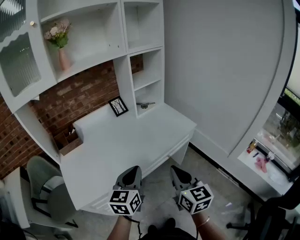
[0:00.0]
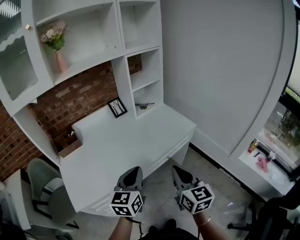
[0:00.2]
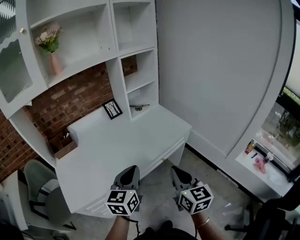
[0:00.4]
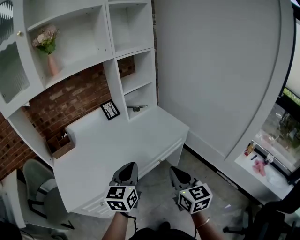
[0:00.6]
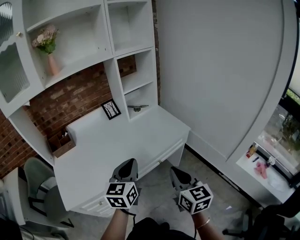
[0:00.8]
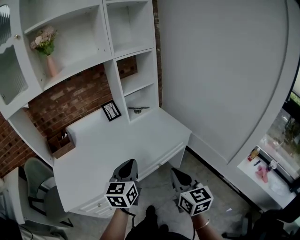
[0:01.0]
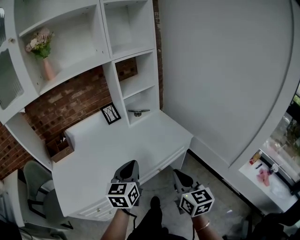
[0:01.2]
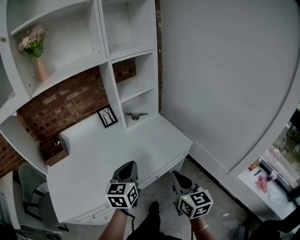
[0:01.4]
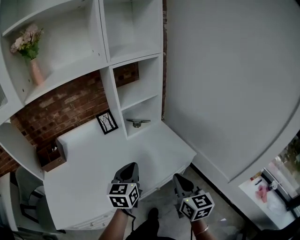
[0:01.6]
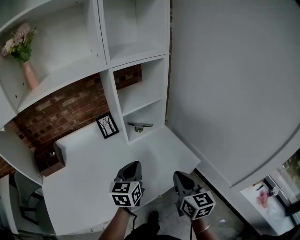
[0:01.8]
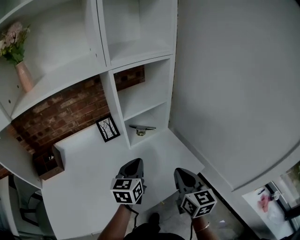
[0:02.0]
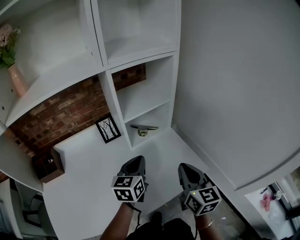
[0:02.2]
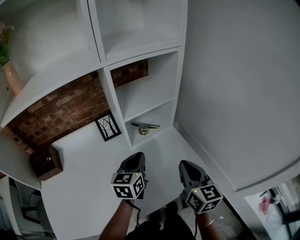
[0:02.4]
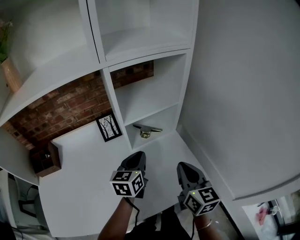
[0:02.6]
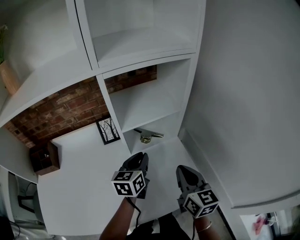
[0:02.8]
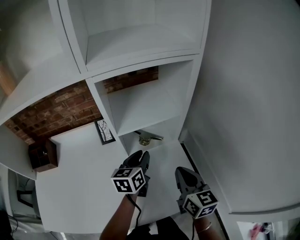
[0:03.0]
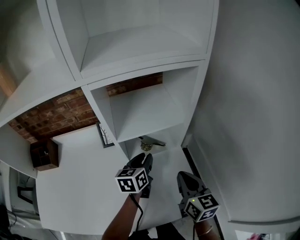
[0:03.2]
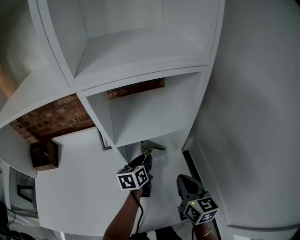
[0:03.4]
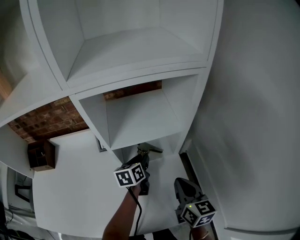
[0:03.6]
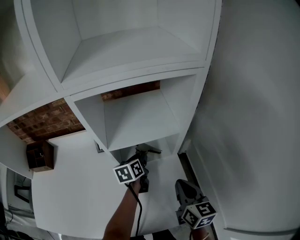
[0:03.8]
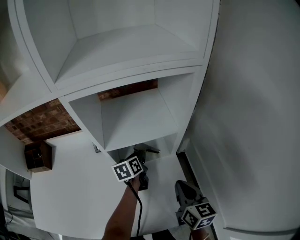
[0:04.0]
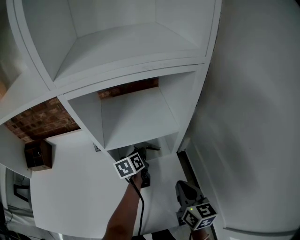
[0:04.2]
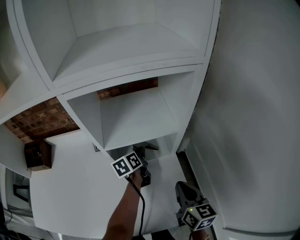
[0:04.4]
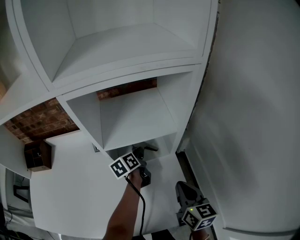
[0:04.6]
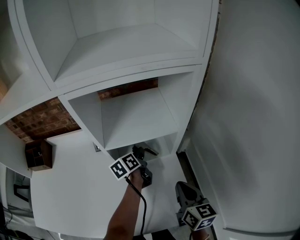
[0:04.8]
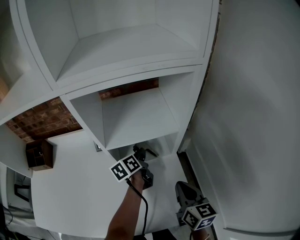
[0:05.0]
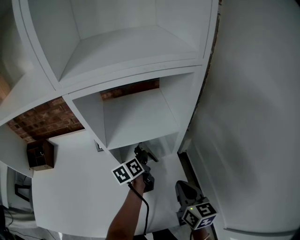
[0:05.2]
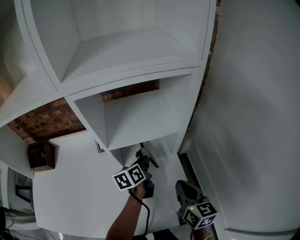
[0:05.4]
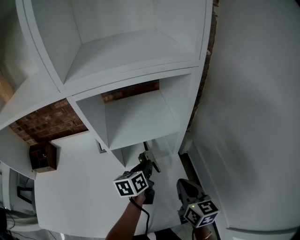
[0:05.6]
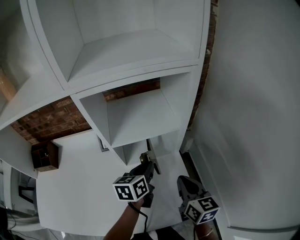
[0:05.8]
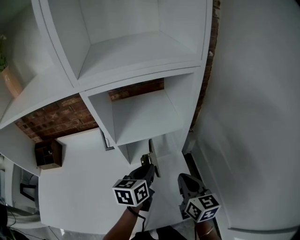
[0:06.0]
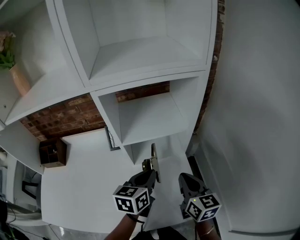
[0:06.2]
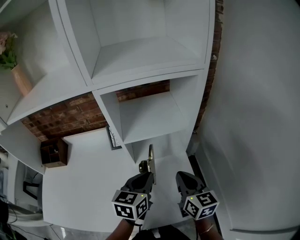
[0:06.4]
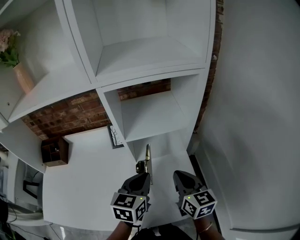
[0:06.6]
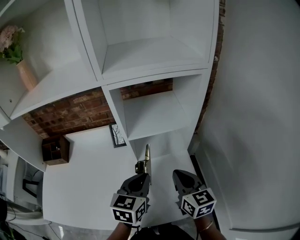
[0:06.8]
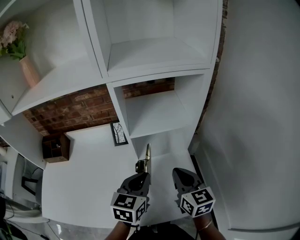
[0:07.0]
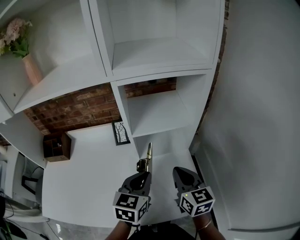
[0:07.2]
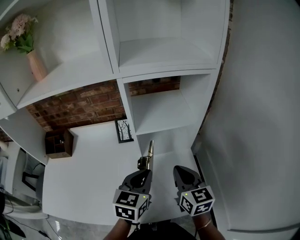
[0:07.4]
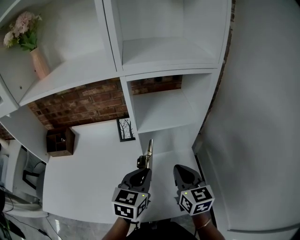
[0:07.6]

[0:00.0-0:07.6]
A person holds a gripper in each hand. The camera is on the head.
0:00.0 to 0:01.6: The right gripper heads forward and to the right, covering about 25 cm. The left gripper travels forward by roughly 25 cm.
0:01.6 to 0:03.0: Both grippers travel together forward, approximately 30 cm.
0:03.0 to 0:04.6: The left gripper goes some 15 cm forward and downward, and changes its angle by about 30 degrees. Meanwhile the right gripper moves approximately 5 cm.
0:04.6 to 0:06.0: The left gripper travels backward and upward by roughly 15 cm, and swivels roughly 30 degrees.
0:06.0 to 0:07.6: The right gripper travels to the left by about 10 cm. Meanwhile the left gripper moves backward, to the left and upward, roughly 15 cm, and rotates about 20 degrees.

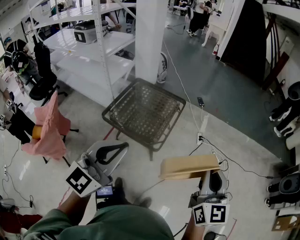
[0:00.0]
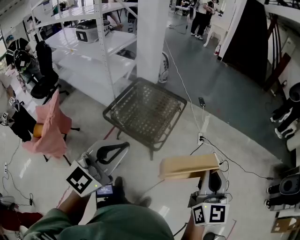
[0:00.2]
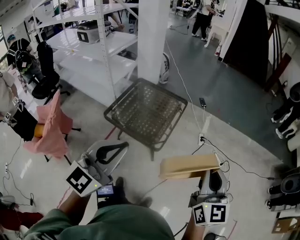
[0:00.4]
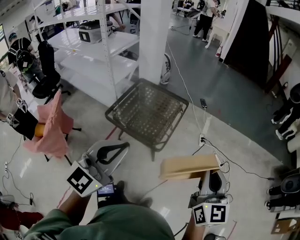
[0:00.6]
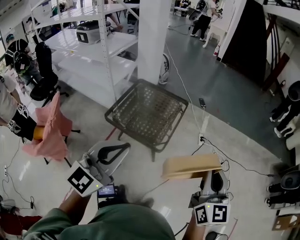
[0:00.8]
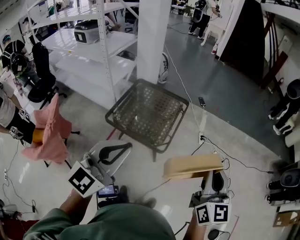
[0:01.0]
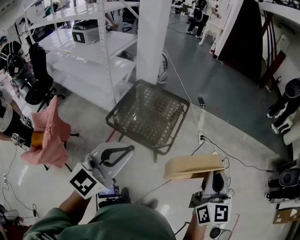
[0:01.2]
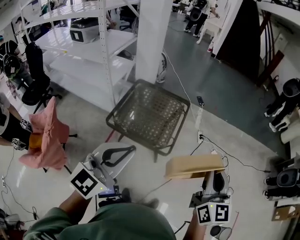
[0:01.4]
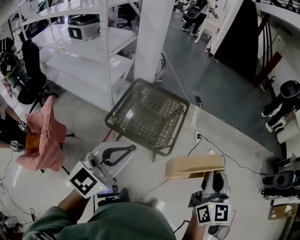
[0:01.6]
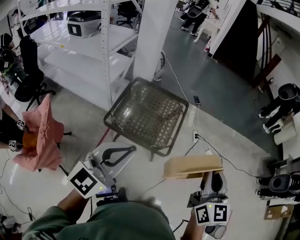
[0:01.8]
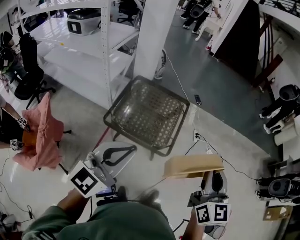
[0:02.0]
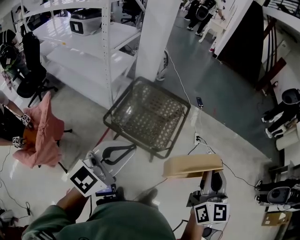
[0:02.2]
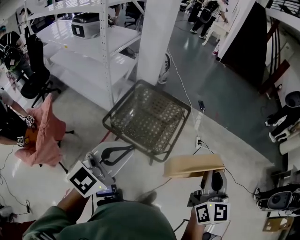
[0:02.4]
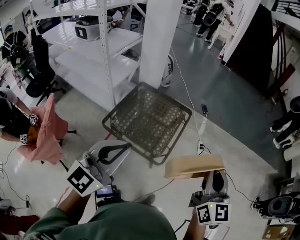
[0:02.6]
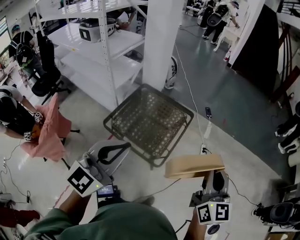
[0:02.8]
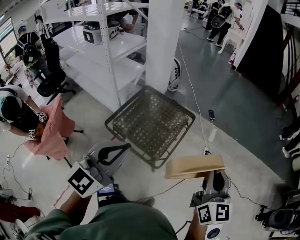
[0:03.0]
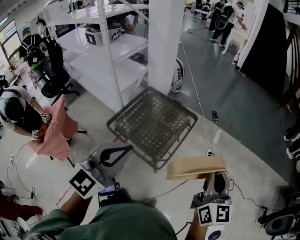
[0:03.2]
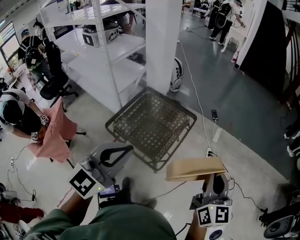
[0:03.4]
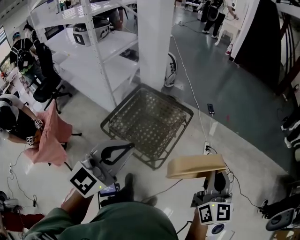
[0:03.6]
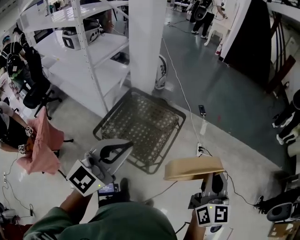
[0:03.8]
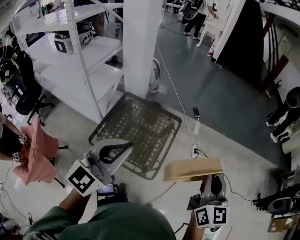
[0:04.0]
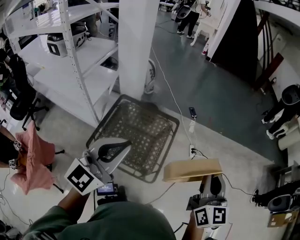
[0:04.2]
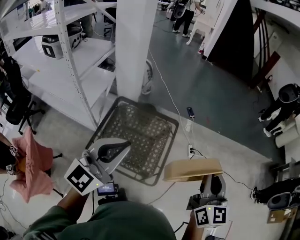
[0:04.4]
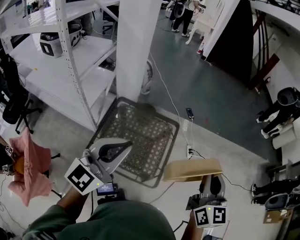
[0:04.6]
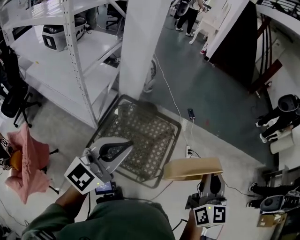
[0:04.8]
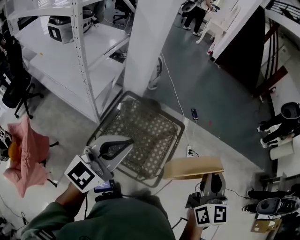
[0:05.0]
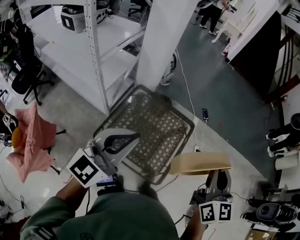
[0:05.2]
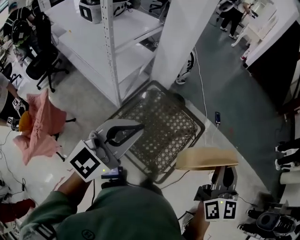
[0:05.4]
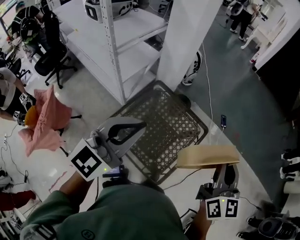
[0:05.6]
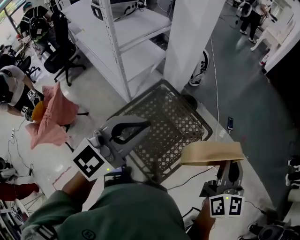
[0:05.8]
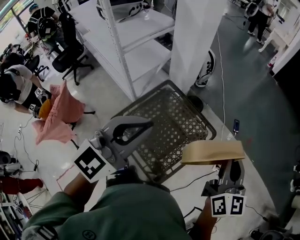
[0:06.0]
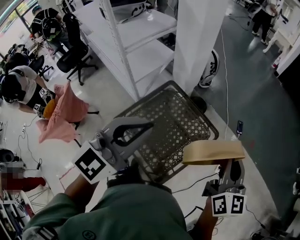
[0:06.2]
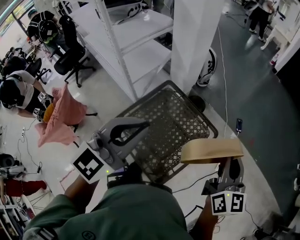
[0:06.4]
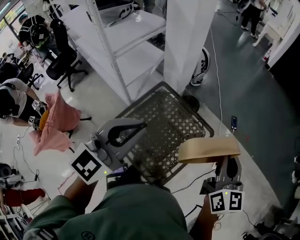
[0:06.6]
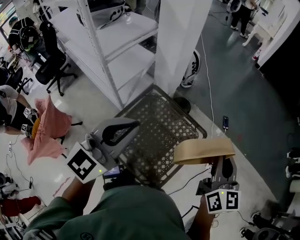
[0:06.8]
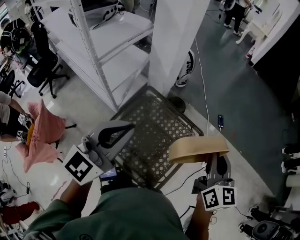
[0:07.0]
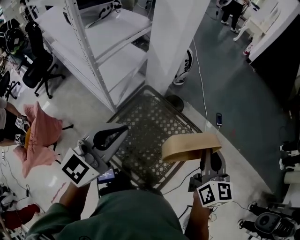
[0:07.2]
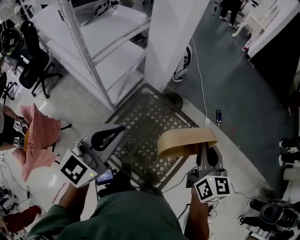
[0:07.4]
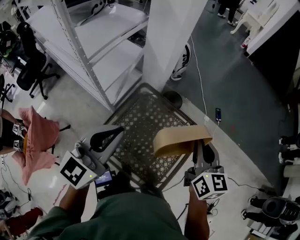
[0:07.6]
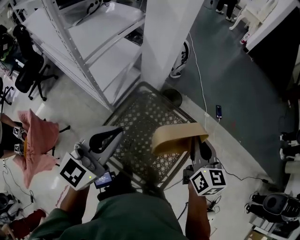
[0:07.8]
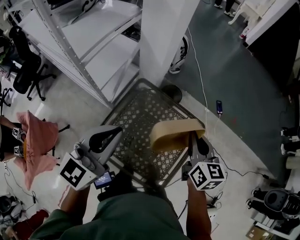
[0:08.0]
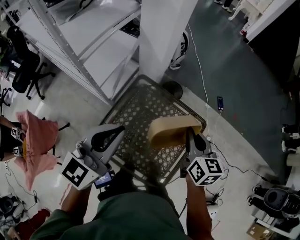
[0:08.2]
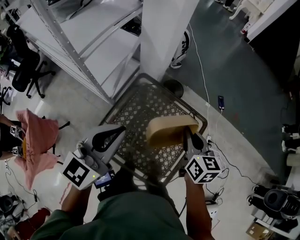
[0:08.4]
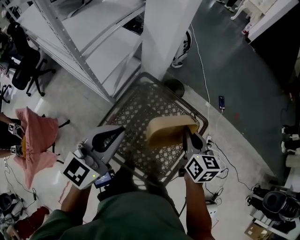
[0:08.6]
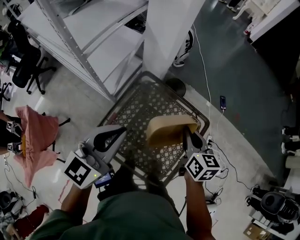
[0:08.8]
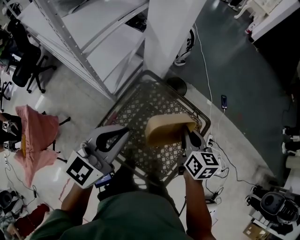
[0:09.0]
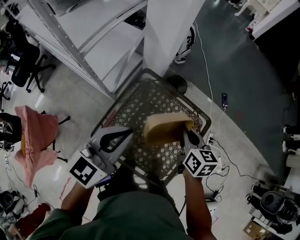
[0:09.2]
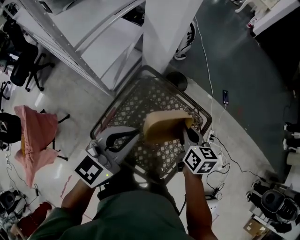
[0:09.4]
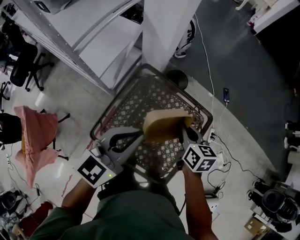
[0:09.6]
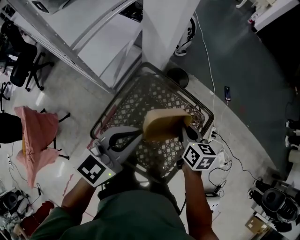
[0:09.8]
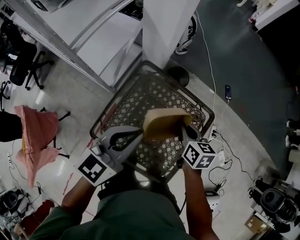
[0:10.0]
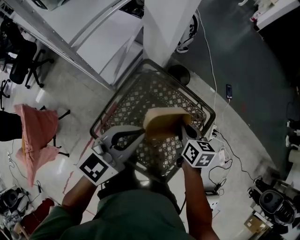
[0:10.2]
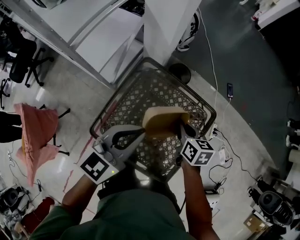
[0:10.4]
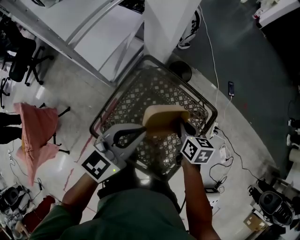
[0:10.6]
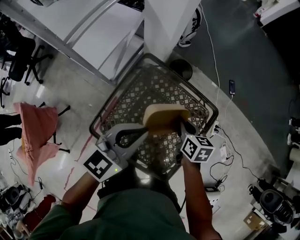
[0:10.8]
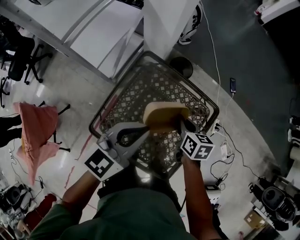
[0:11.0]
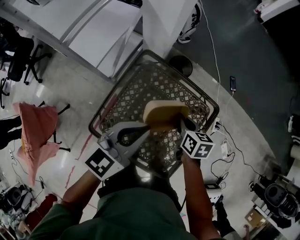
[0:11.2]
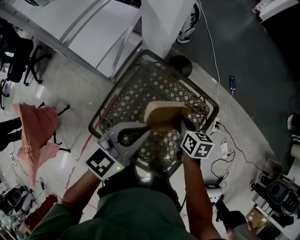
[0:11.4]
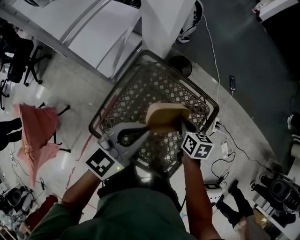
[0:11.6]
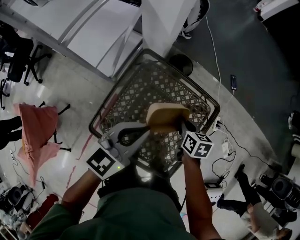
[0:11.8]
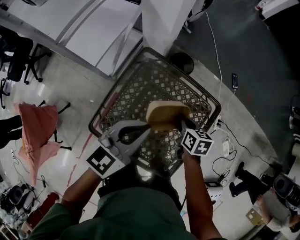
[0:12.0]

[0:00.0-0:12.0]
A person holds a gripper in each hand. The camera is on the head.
0:00.0 to 0:01.6: The two grippers go about 20 cm to the left.
0:01.6 to 0:03.0: The left gripper travels to the right and forward by some 20 cm. The right gripper travels forward and to the right by some 25 cm.
0:03.0 to 0:04.4: The left gripper heads forward and to the left, covering some 25 cm, while the right gripper moves to the left and forward, approximately 15 cm.
0:04.4 to 0:06.0: The right gripper moves forward, some 25 cm, and turns by about 30 degrees. The left gripper travels forward by approximately 15 cm, and changes its angle by roughly 20 degrees.
0:06.0 to 0:07.6: The grippers both shift to the left, forward and downward by roughly 20 cm.
0:07.6 to 0:09.0: The right gripper is displaced downward and to the left by some 15 cm. Meanwhile the left gripper goes some 10 cm downward.
0:09.0 to 0:10.4: The two grippers go about 10 cm downward.
0:10.4 to 0:12.0: The right gripper is displaced downward by approximately 10 cm. The left gripper travels downward by about 5 cm.

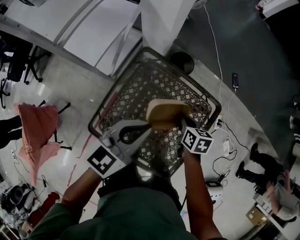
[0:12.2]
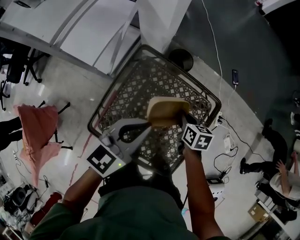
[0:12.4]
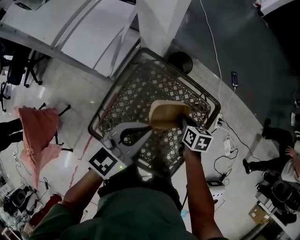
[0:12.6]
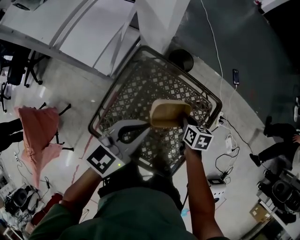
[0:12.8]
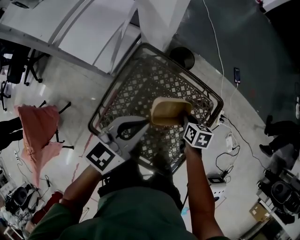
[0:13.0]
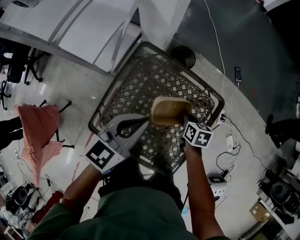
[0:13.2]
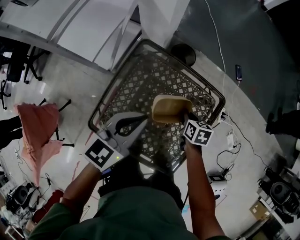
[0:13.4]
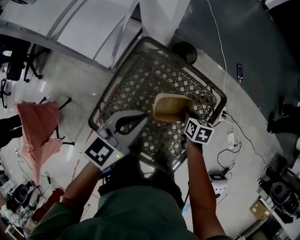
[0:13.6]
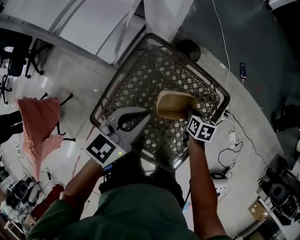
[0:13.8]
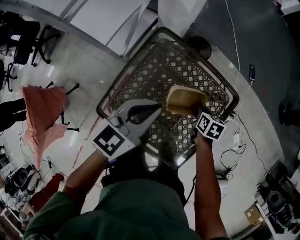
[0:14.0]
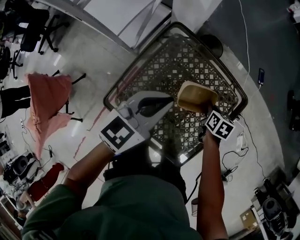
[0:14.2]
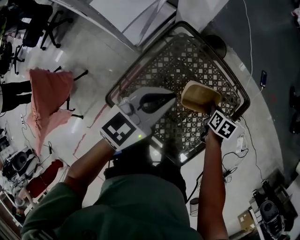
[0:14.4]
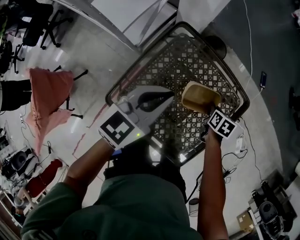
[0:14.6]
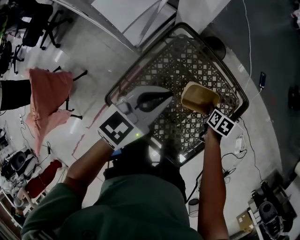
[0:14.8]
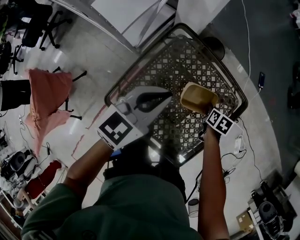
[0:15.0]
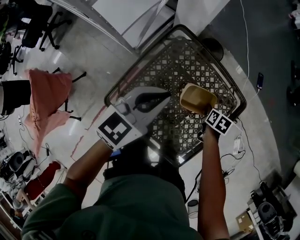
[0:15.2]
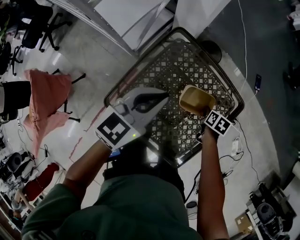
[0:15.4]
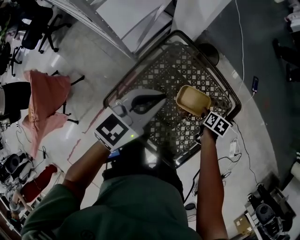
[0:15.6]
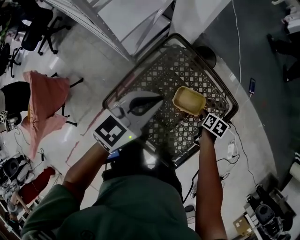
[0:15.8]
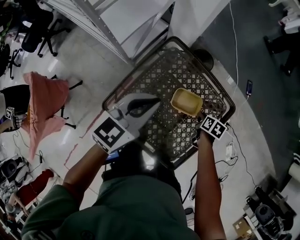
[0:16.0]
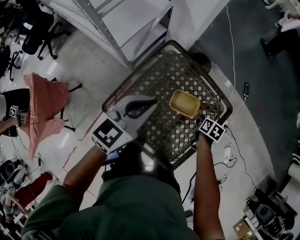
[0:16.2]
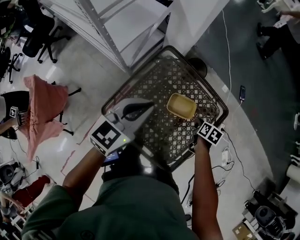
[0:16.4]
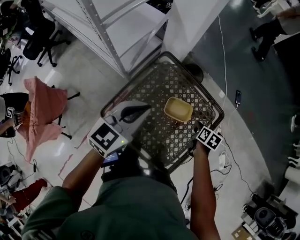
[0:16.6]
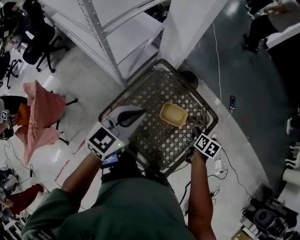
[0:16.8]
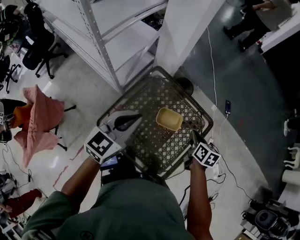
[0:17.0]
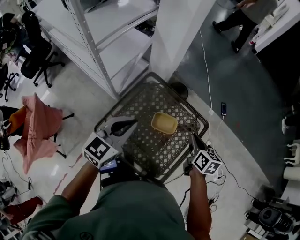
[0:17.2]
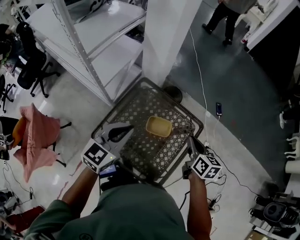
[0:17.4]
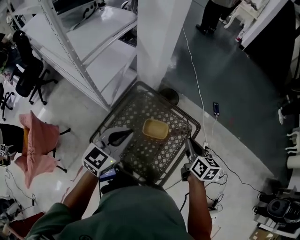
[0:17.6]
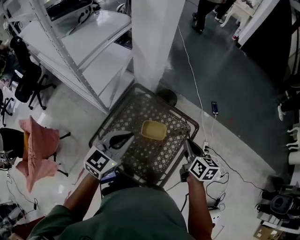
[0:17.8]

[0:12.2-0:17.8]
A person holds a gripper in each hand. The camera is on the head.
0:12.2 to 0:13.6: The right gripper heads downward, covering some 10 cm.
0:13.6 to 0:15.0: There are only small adjustments of the grippers.
0:15.0 to 0:16.4: The right gripper is displaced upward by roughly 5 cm. Meanwhile the left gripper moves upward and backward, about 10 cm.
0:16.4 to 0:17.8: The right gripper goes some 25 cm upward, and tilts its fingers about 30 degrees upward; the left gripper moves to the right and upward, some 10 cm.
